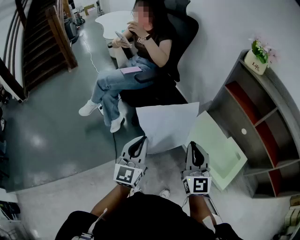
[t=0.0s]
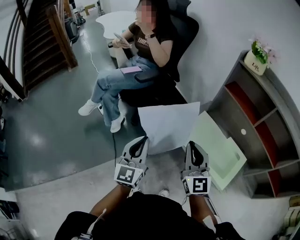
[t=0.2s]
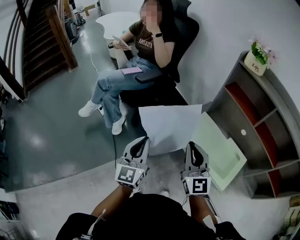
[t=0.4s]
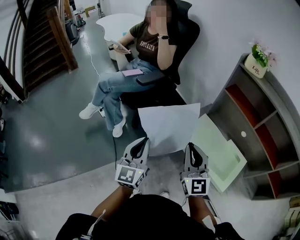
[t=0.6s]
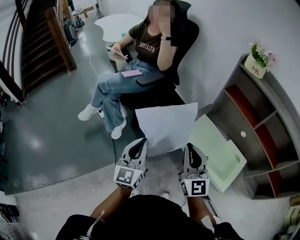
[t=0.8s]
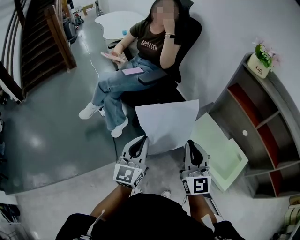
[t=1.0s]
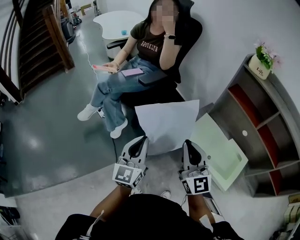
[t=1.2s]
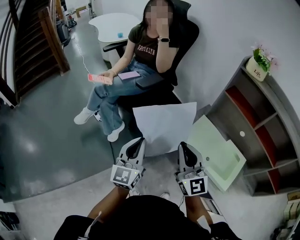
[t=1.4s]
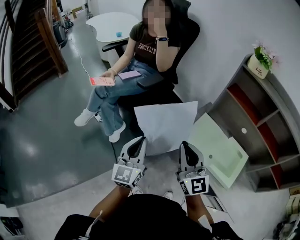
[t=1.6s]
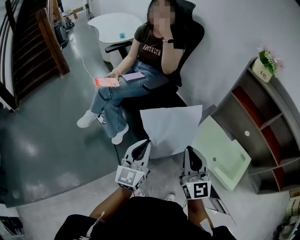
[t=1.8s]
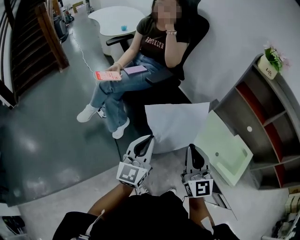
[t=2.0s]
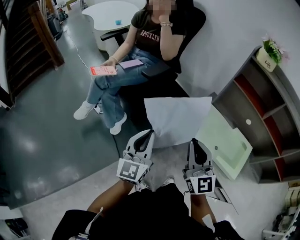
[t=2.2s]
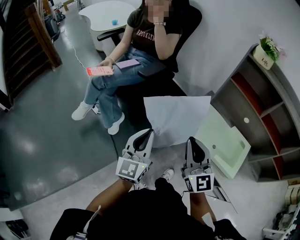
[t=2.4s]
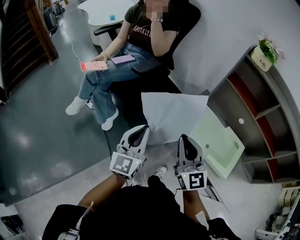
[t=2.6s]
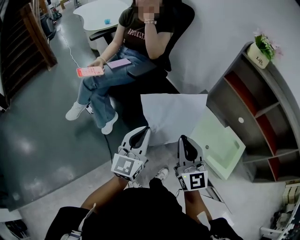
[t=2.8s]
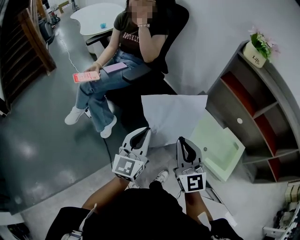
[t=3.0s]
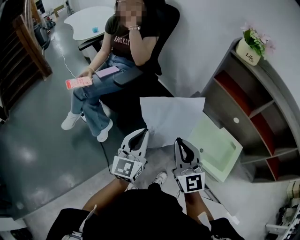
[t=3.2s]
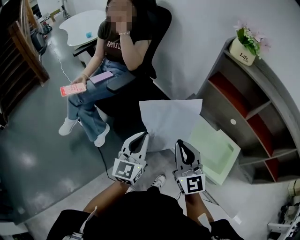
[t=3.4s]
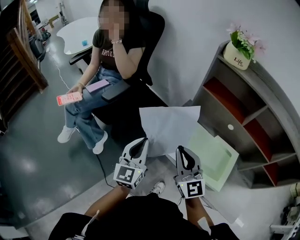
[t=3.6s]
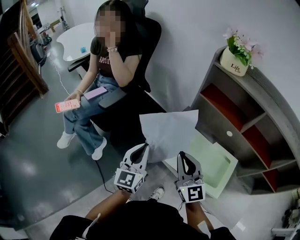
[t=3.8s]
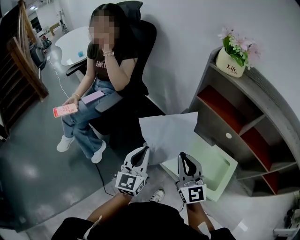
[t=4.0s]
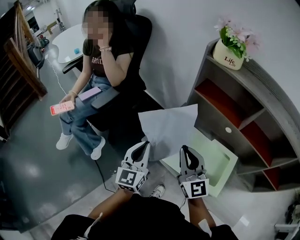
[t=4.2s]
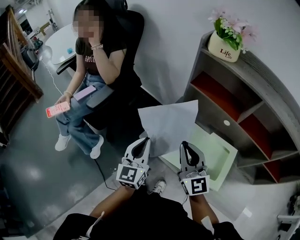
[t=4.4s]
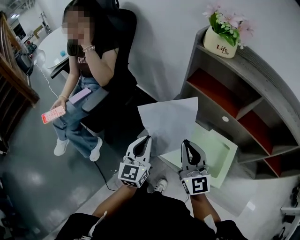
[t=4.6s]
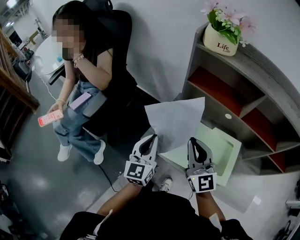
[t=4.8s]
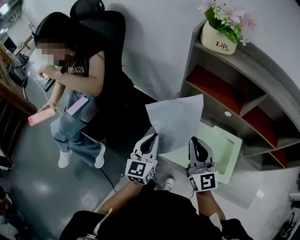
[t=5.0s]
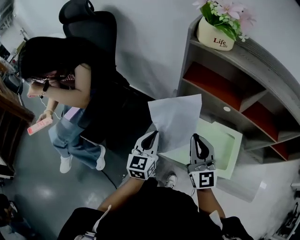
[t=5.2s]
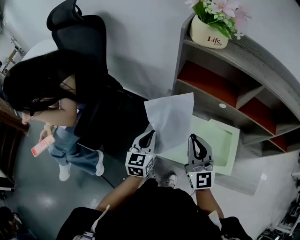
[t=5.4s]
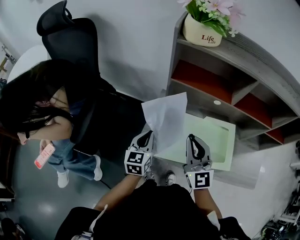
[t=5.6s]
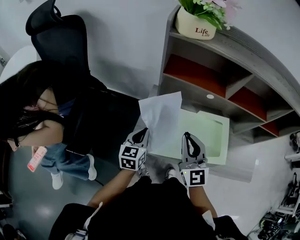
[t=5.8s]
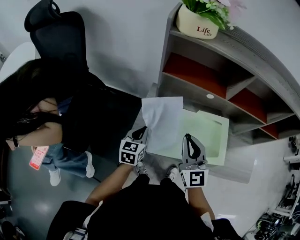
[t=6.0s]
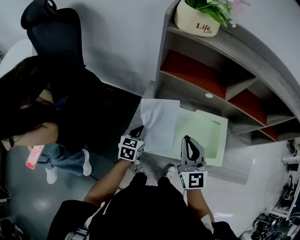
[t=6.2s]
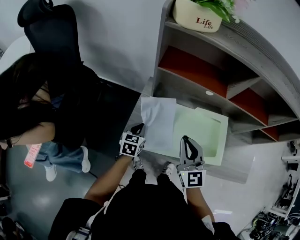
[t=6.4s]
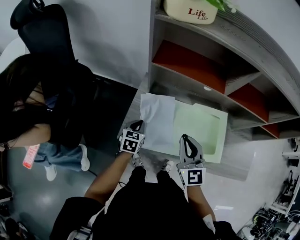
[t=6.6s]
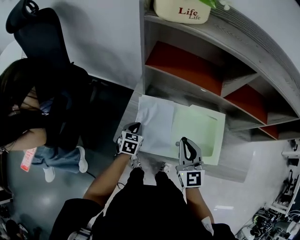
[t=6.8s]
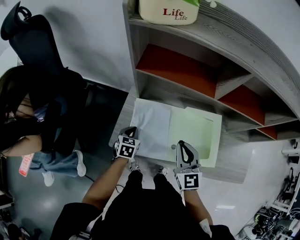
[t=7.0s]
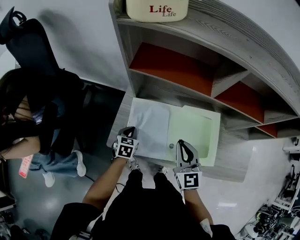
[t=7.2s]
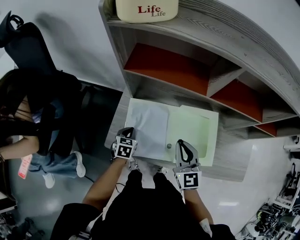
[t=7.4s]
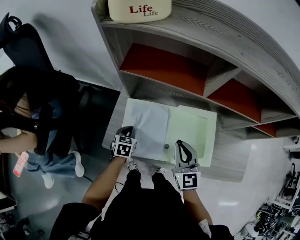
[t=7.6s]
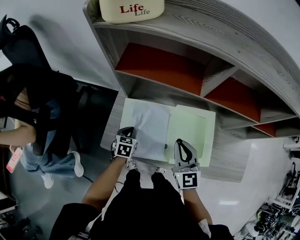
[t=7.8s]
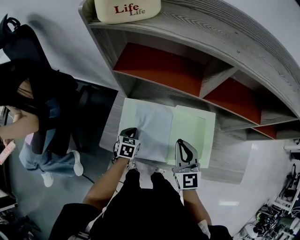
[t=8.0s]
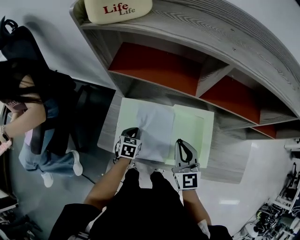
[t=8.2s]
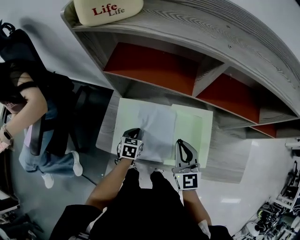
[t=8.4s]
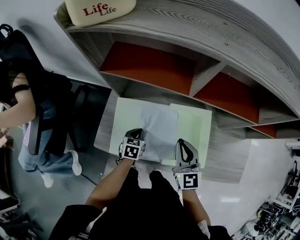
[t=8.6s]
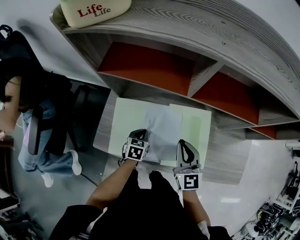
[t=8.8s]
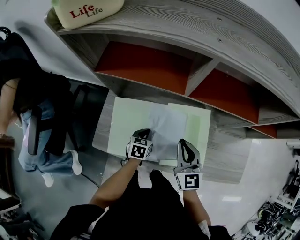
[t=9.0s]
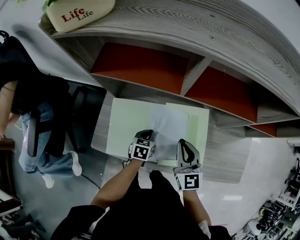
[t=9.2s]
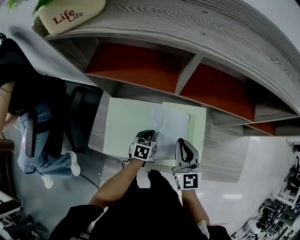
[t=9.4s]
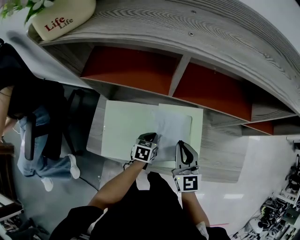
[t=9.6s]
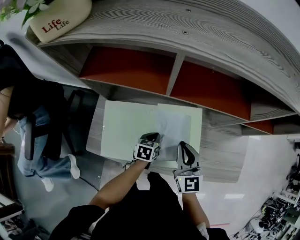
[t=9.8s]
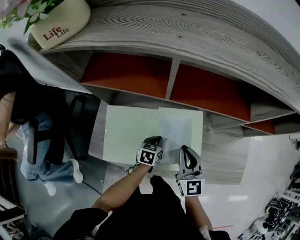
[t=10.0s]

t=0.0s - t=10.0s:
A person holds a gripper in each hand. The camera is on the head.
t=0.0s - t=1.4s: The right gripper goes some 10 cm to the left. The left gripper moves approximately 5 cm.
t=1.4s - t=2.8s: The grippers move only a little.
t=2.8s - t=4.2s: The two grippers go some 20 cm to the right and forward.
t=4.2s - t=5.8s: The right gripper changes place by roughly 5 cm, and turns by approximately 30 degrees. The left gripper changes place by approximately 20 cm, and swivels about 40 degrees.
t=5.8s - t=7.2s: The left gripper shifts roughly 15 cm downward, and rotates roughly 30 degrees. Meanwhile the right gripper is displaced downward and to the right by roughly 15 cm.
t=7.2s - t=8.6s: Both grippers move to the right, approximately 10 cm.
t=8.6s - t=10.0s: The left gripper goes roughly 15 cm to the right, while the right gripper shifts roughly 5 cm to the right.

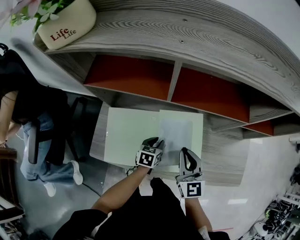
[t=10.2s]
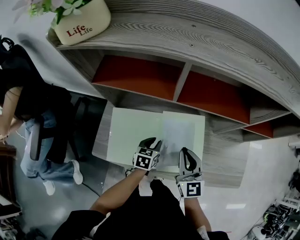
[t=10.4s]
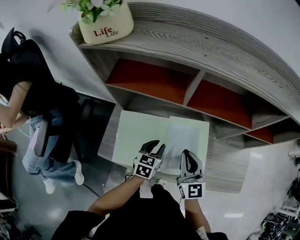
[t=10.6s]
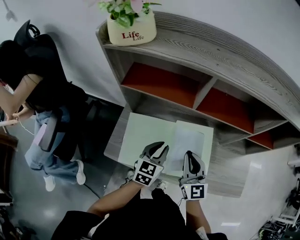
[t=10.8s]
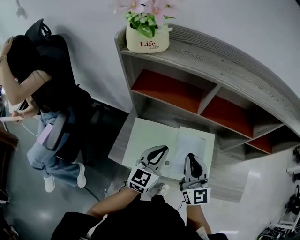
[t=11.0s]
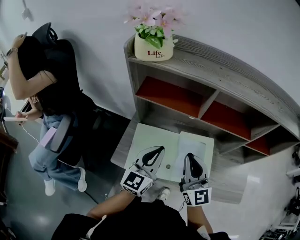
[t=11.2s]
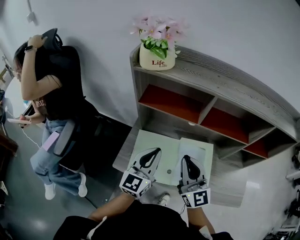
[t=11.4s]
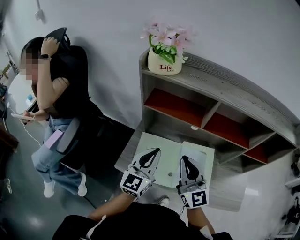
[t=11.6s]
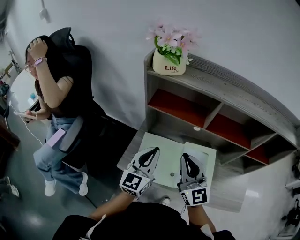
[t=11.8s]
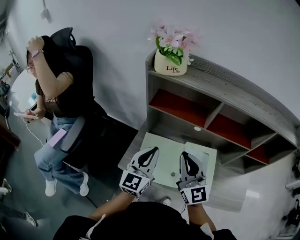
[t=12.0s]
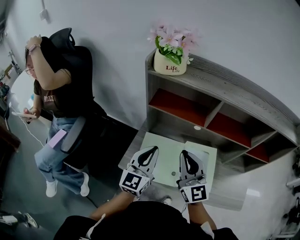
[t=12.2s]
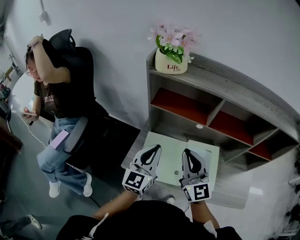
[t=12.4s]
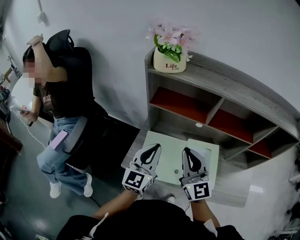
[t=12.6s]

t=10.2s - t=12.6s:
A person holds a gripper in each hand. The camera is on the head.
t=10.2s - t=11.4s: The left gripper travels upward and to the left by approximately 35 cm, points its fingers approximately 50 degrees further upward, and closes up. Meanwhile the right gripper shifts approximately 25 cm upward and to the left, and rotates about 30 degrees.
t=11.4s - t=12.6s: The left gripper changes place by some 5 cm; the right gripper ends up about 5 cm from where it was.

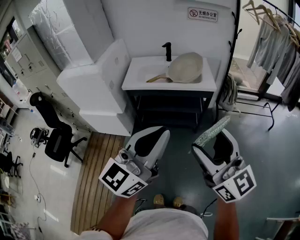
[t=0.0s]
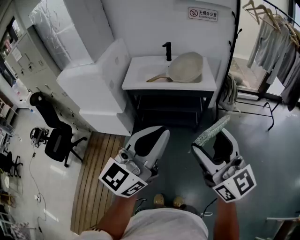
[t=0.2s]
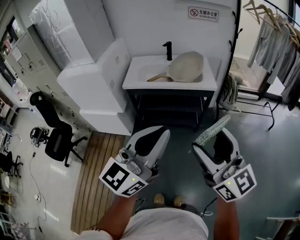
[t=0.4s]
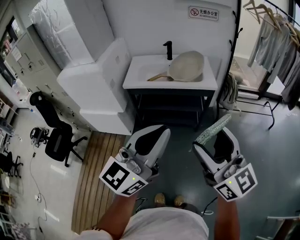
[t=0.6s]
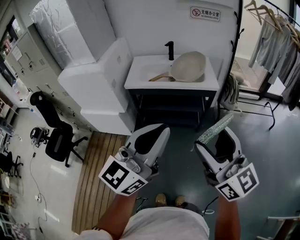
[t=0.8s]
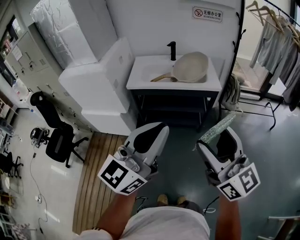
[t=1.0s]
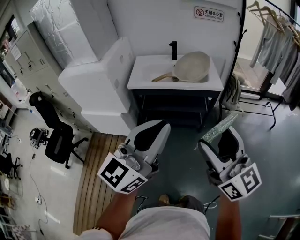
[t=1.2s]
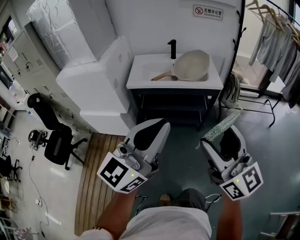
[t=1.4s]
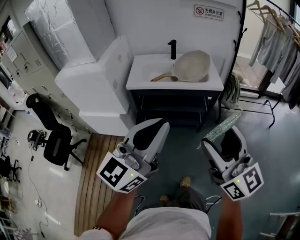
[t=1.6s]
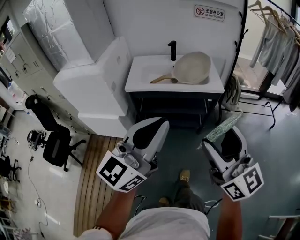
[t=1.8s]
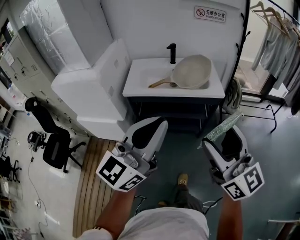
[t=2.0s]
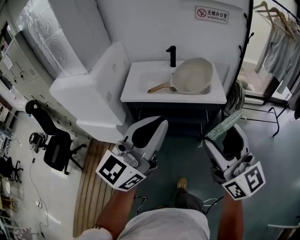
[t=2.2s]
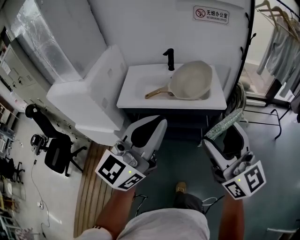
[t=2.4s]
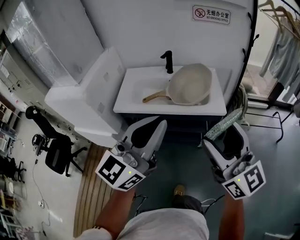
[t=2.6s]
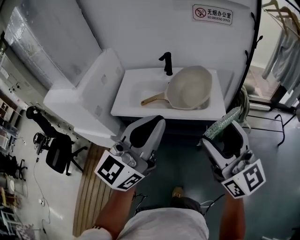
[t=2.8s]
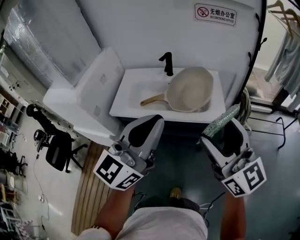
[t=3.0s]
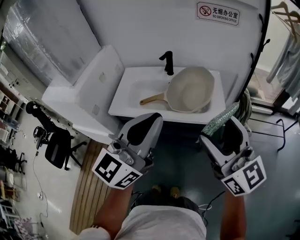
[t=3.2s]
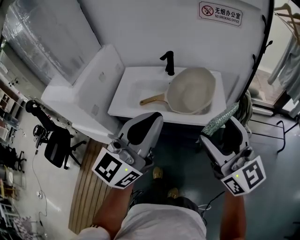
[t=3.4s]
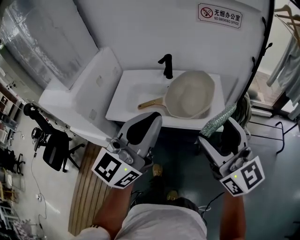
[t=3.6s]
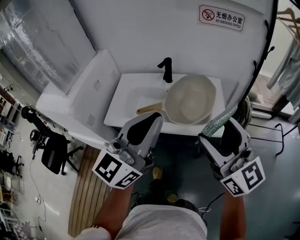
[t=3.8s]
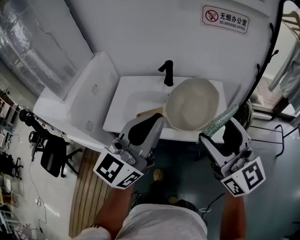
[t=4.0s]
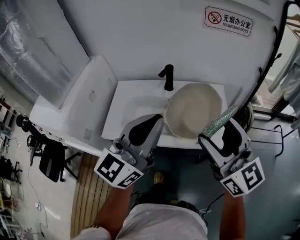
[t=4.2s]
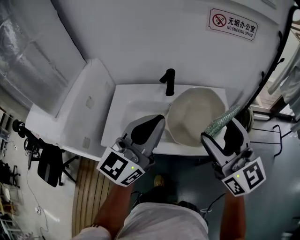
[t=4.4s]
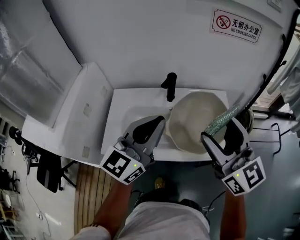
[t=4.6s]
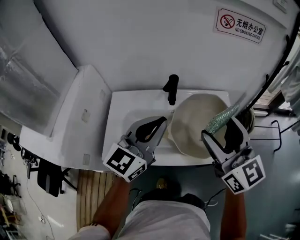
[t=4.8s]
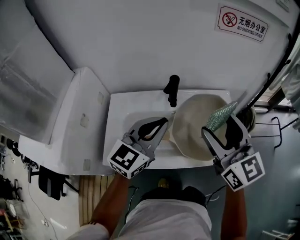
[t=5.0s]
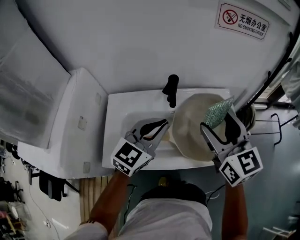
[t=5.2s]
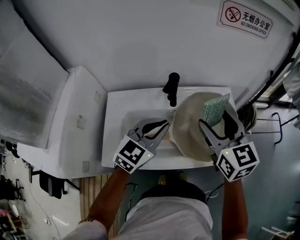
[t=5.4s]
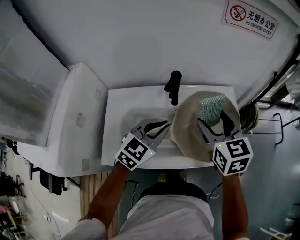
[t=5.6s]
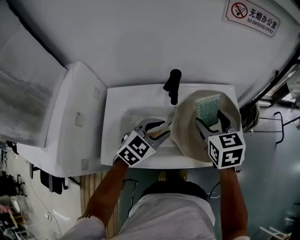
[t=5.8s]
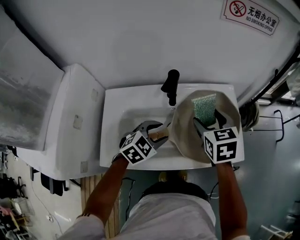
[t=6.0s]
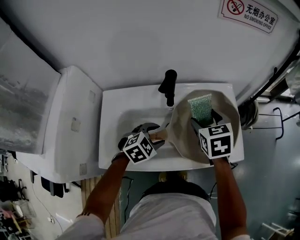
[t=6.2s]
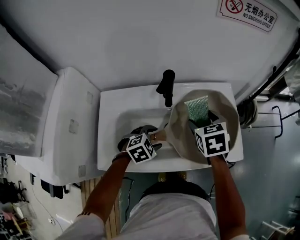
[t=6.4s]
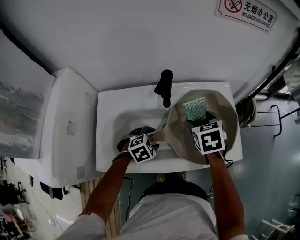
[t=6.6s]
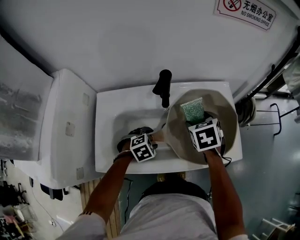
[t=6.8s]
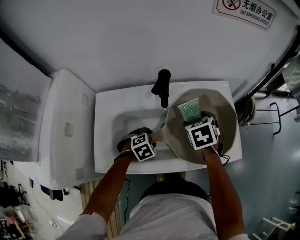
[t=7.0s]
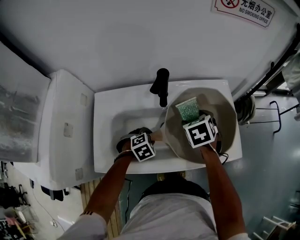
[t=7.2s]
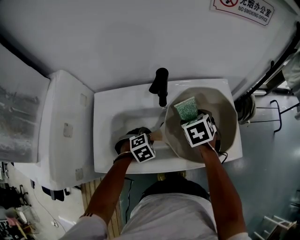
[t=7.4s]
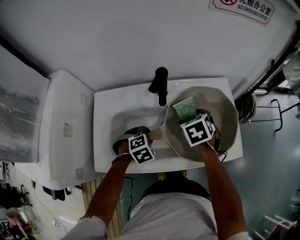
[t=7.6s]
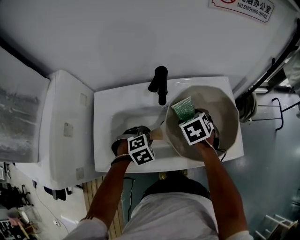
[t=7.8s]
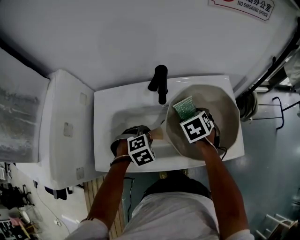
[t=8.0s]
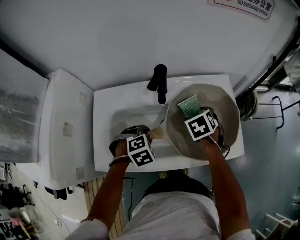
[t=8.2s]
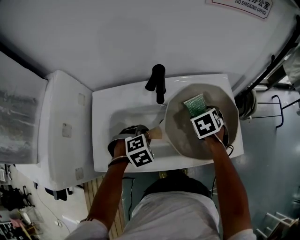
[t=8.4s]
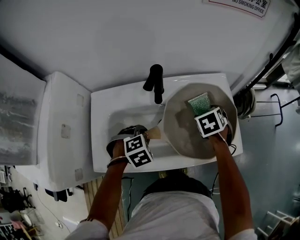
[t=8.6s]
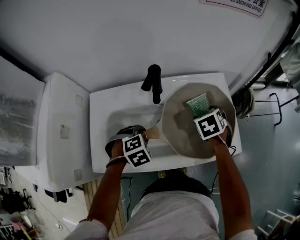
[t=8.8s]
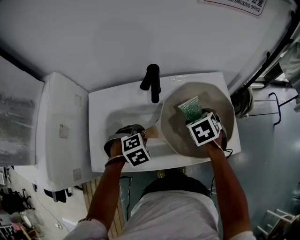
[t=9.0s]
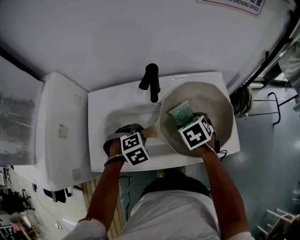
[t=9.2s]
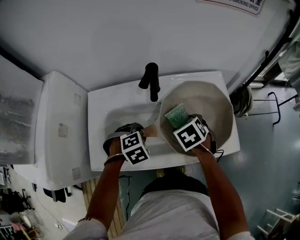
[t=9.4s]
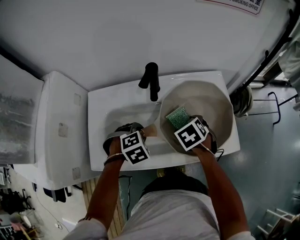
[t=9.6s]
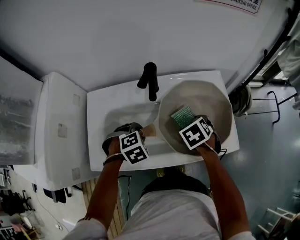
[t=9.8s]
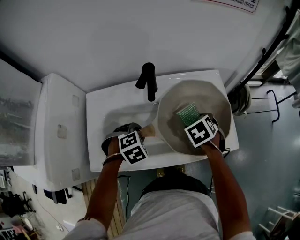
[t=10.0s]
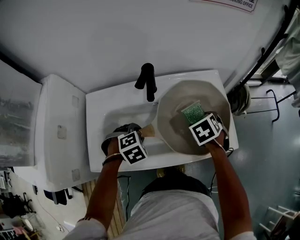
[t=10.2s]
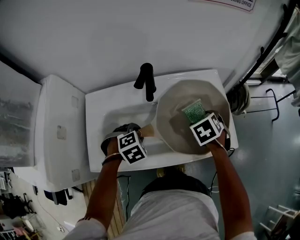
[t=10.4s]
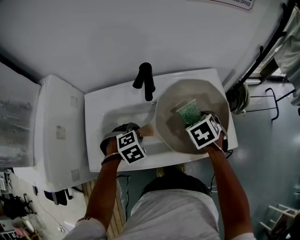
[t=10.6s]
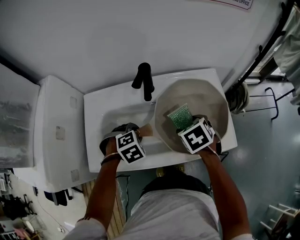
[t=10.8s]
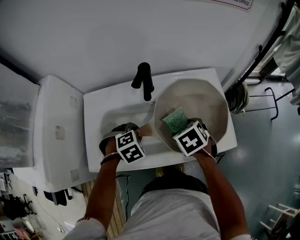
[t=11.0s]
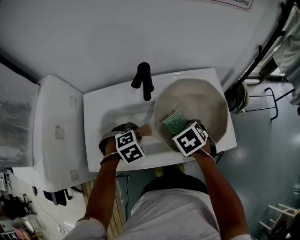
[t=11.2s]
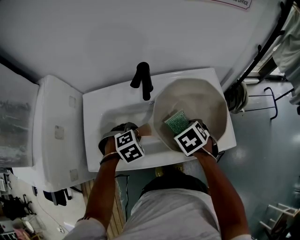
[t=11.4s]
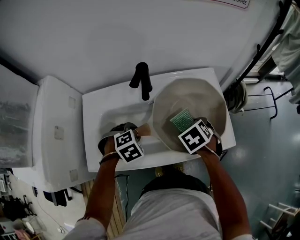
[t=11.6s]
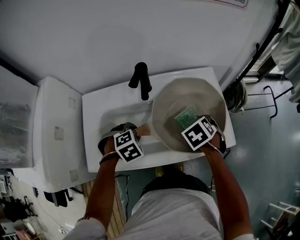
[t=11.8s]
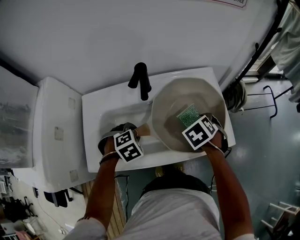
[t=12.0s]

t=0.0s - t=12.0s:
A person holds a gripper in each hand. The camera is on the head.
t=0.0s - t=1.6s: The left gripper travels to the left by approximately 5 cm; the right gripper changes place by approximately 5 cm.
t=1.6s - t=3.0s: Both grippers move forward, about 30 cm.
t=3.0s - t=4.4s: The two grippers go about 20 cm forward.
t=4.4s - t=6.0s: The two grippers go some 30 cm downward and forward. The left gripper angles its fingers downward, by approximately 60 degrees, and opens, while the right gripper points its fingers roughly 40 degrees further downward.
t=6.0s - t=7.6s: The two grippers go approximately 10 cm downward. The right gripper turns by some 20 degrees. Meanwhile the left gripper swivels roughly 30 degrees.
